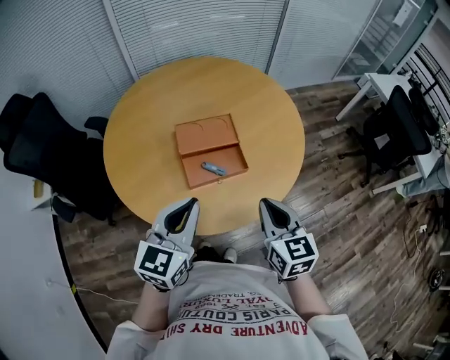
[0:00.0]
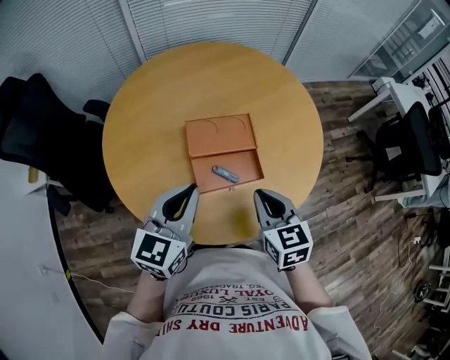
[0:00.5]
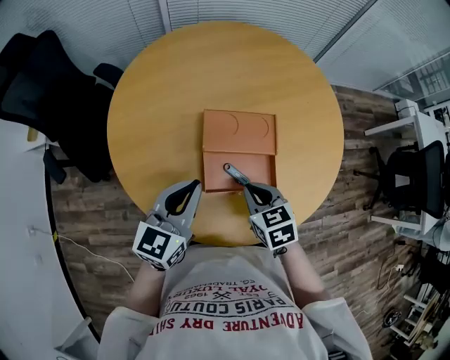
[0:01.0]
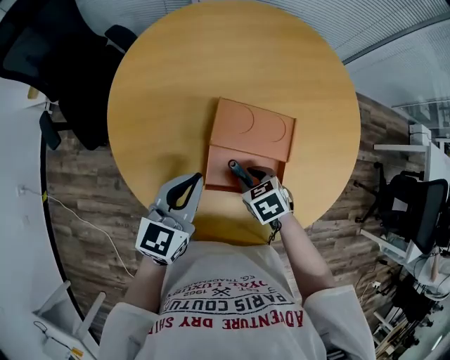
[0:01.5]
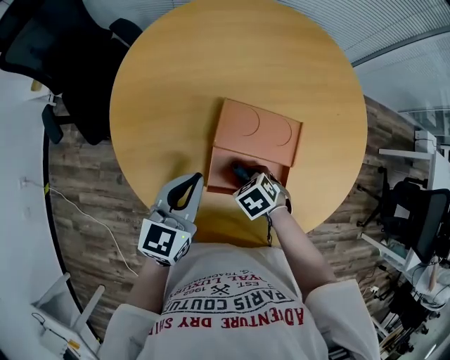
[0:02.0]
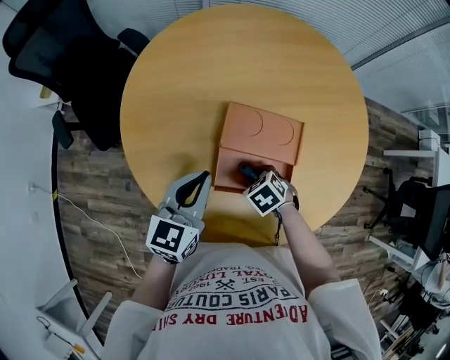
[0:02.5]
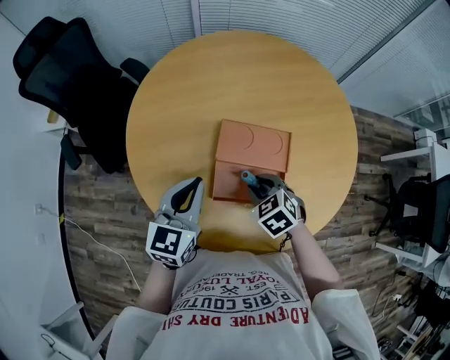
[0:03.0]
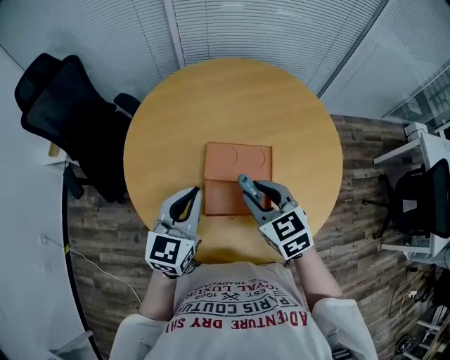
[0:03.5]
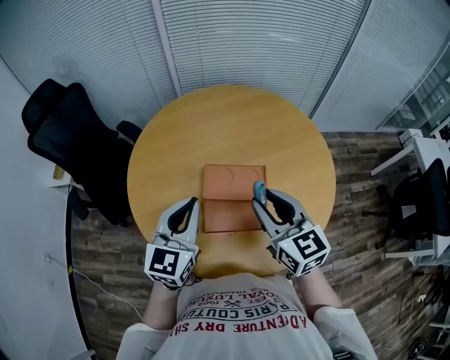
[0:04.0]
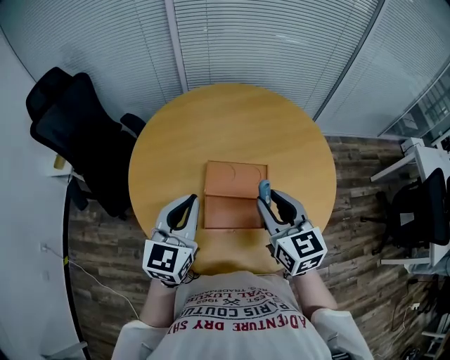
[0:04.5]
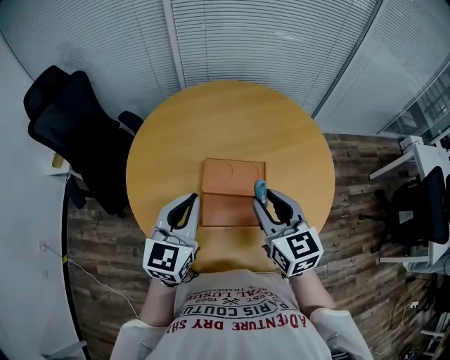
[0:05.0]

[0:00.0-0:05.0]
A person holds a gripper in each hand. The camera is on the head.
0:00.0 to 0:02.5: The right gripper travels downward by some 25 cm, tips its fingers downward by roughly 50 degrees, and opens its fingers, while the left gripper changes place by roughly 25 cm, and swivels roughly 30 degrees.
0:02.5 to 0:05.0: The left gripper is displaced upward by some 15 cm. The right gripper shifts approximately 30 cm upward, and tilts its fingers approximately 60 degrees upward.

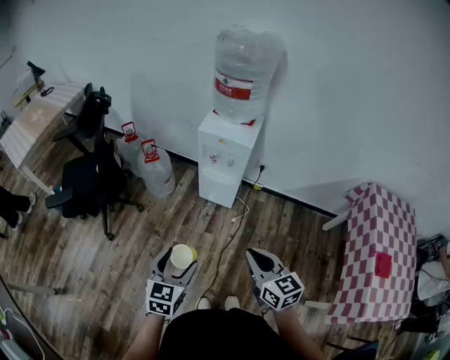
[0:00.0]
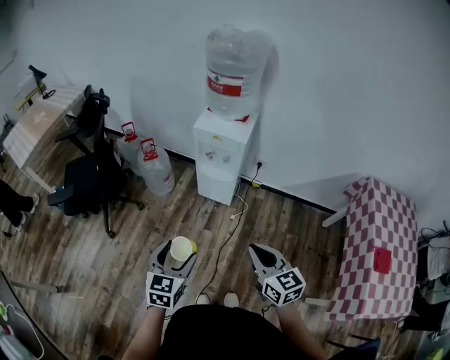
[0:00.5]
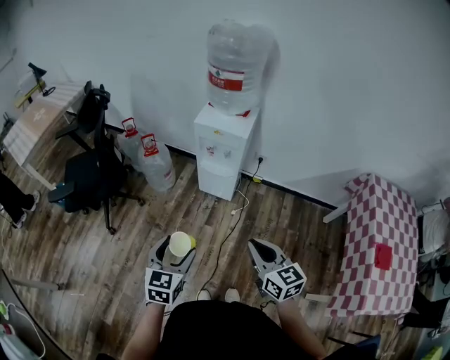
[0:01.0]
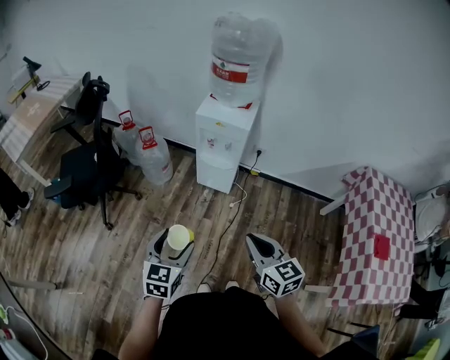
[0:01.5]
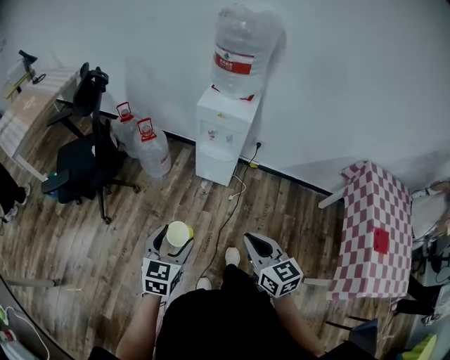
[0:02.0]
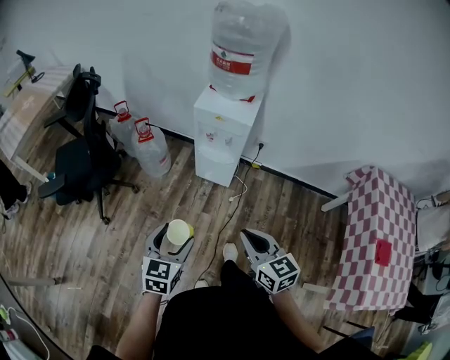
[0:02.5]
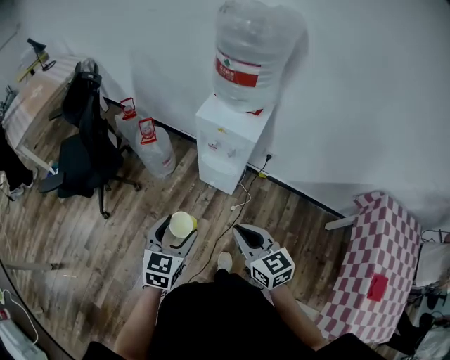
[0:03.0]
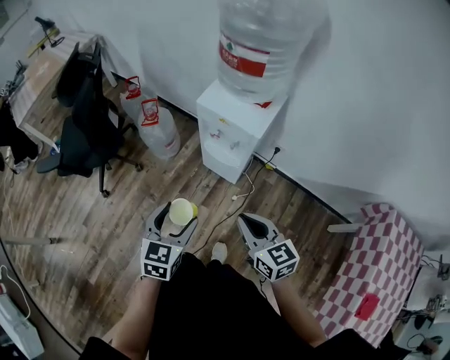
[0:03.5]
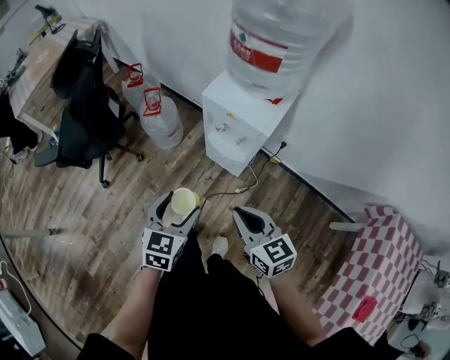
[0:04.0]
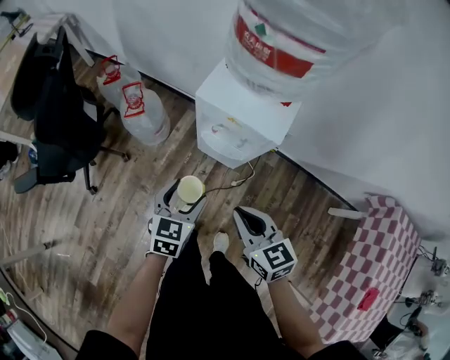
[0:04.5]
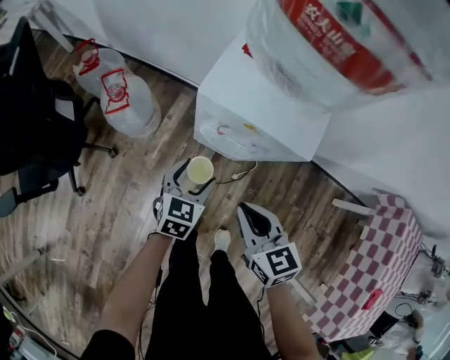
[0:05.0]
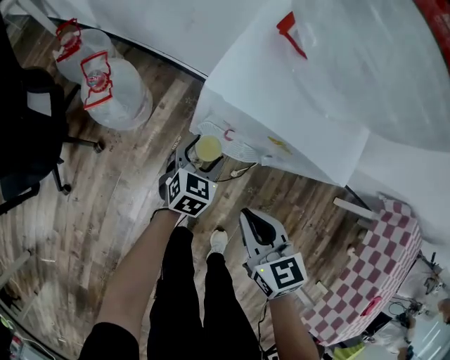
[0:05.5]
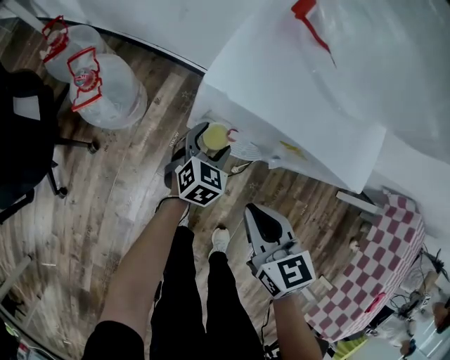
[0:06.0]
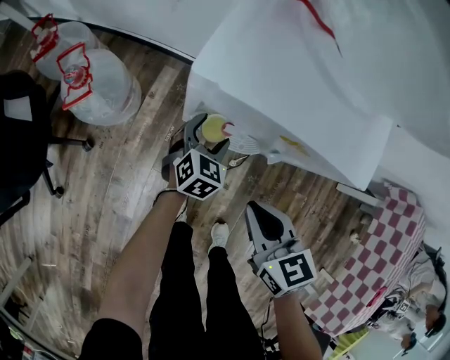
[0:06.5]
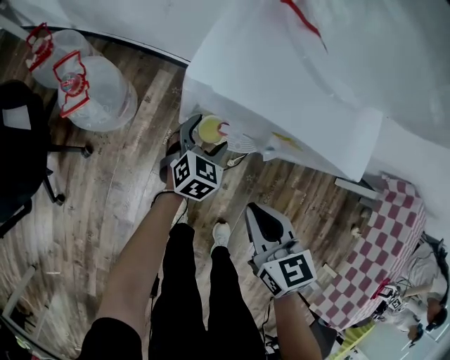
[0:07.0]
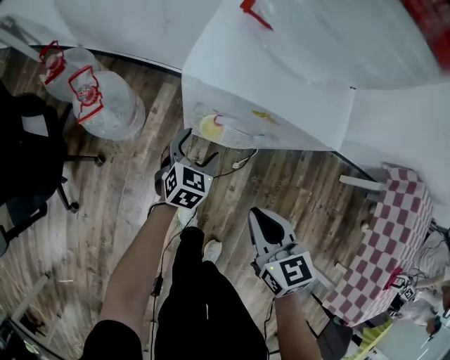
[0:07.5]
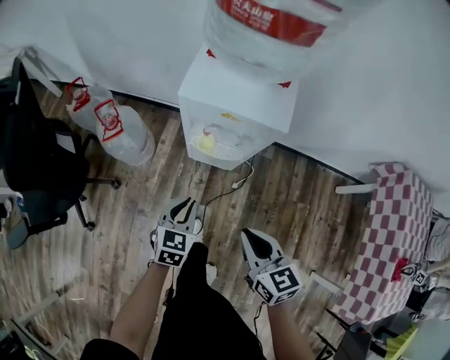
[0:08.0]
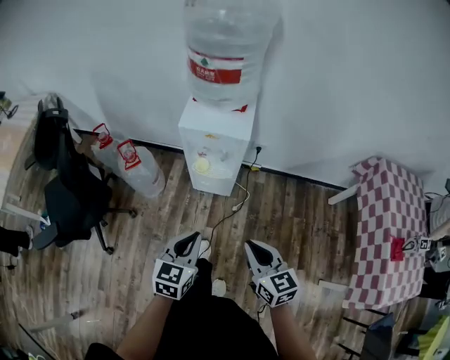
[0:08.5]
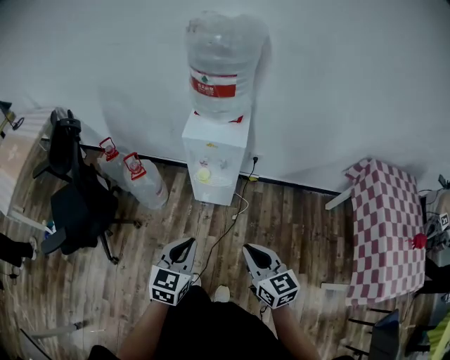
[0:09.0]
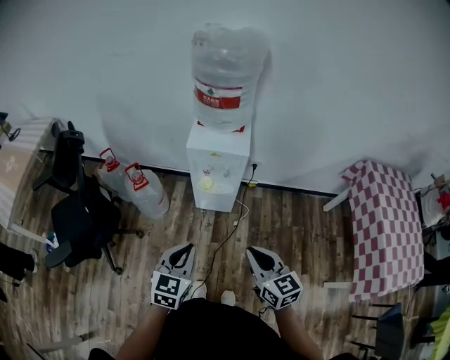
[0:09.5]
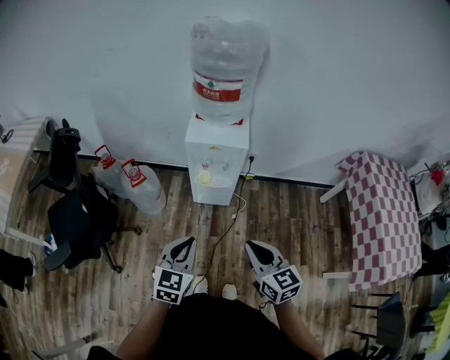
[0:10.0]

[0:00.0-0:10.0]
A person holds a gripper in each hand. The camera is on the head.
0:00.0 to 0:02.0: The right gripper moves some 5 cm.
0:02.0 to 0:04.0: The right gripper moves forward, roughly 25 cm, and swivels approximately 20 degrees; the left gripper travels forward and to the right by about 25 cm.
0:04.0 to 0:06.0: The left gripper shifts approximately 50 cm downward and forward, and rotates approximately 20 degrees; the right gripper shifts roughly 30 cm downward and forward, and turns by about 20 degrees.
0:06.0 to 0:08.0: The grippers both shift backward and upward by approximately 25 cm. The left gripper closes up.
0:08.0 to 0:10.0: The two grippers go roughly 30 cm upward and backward.

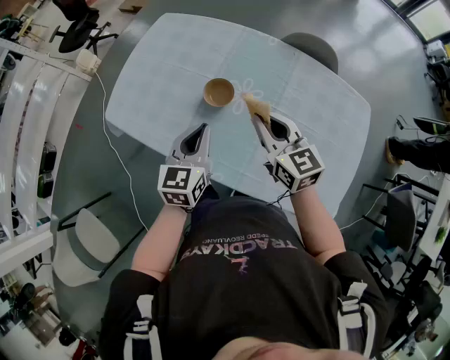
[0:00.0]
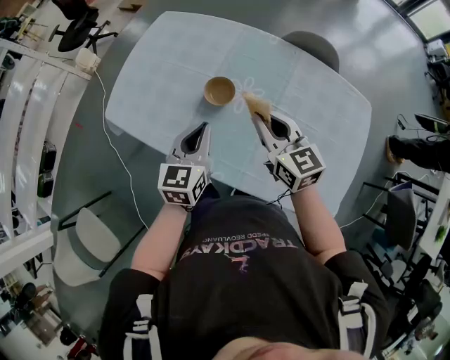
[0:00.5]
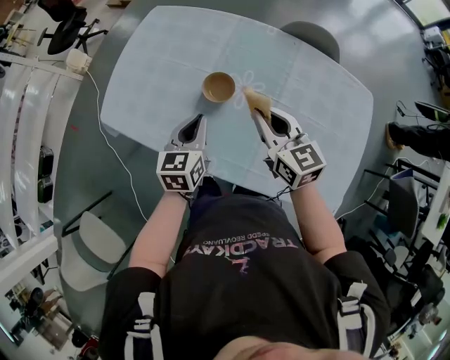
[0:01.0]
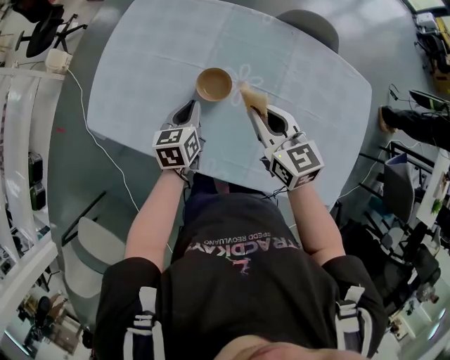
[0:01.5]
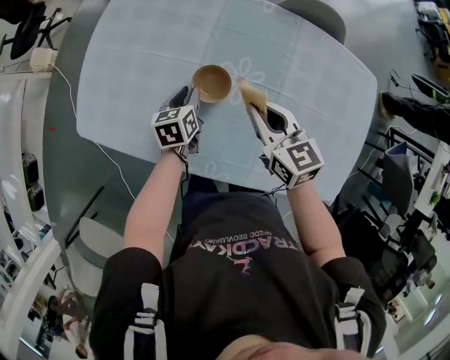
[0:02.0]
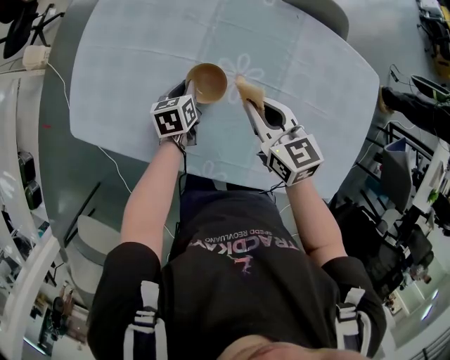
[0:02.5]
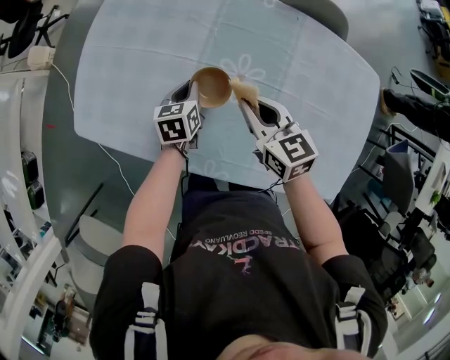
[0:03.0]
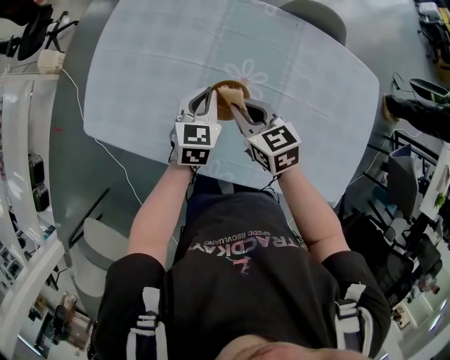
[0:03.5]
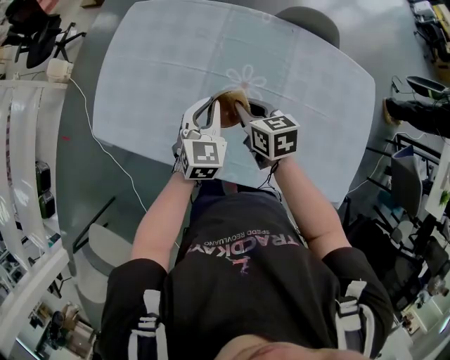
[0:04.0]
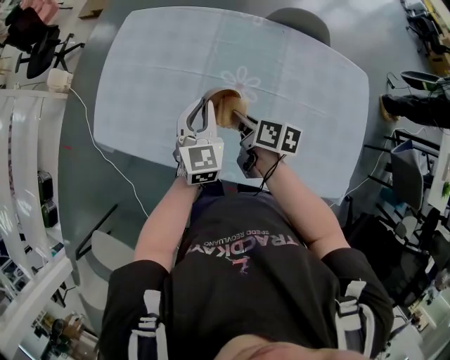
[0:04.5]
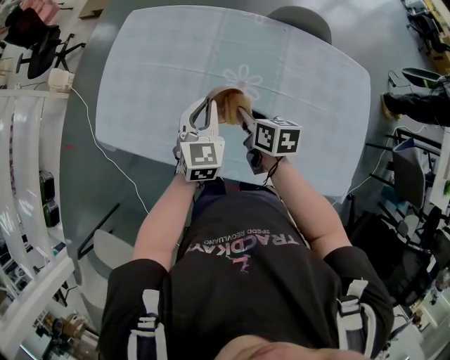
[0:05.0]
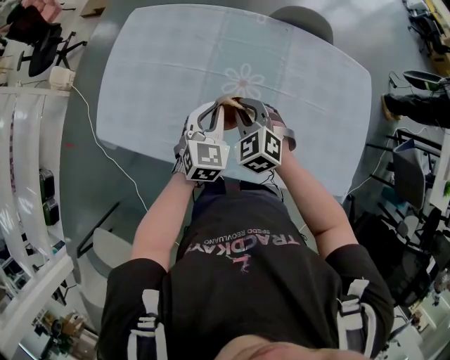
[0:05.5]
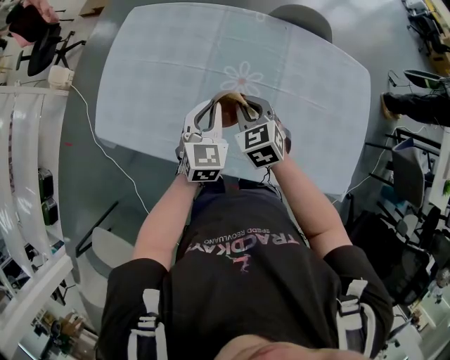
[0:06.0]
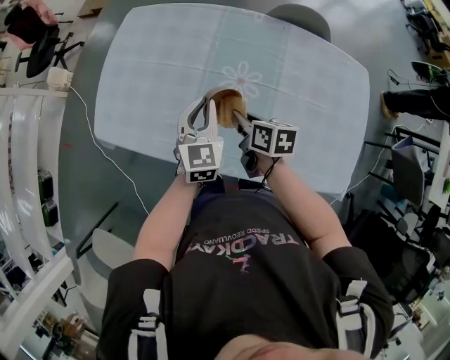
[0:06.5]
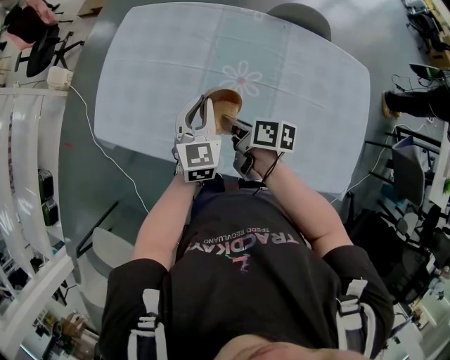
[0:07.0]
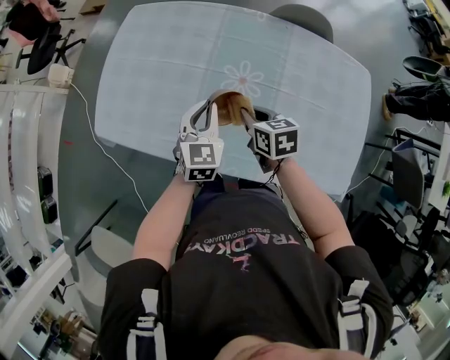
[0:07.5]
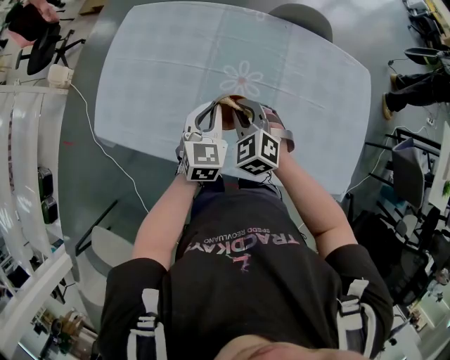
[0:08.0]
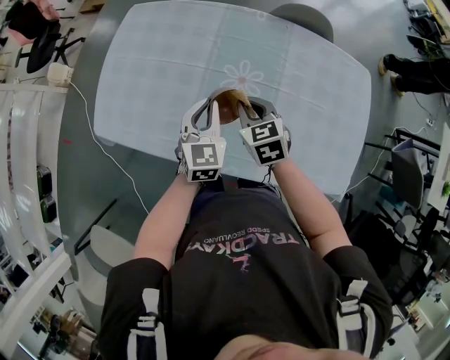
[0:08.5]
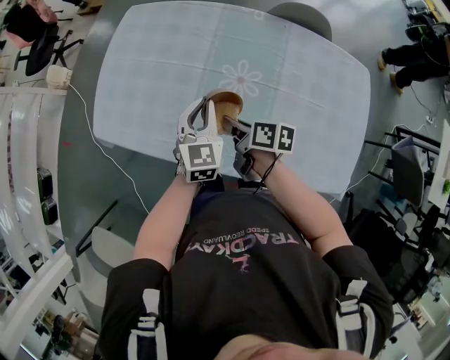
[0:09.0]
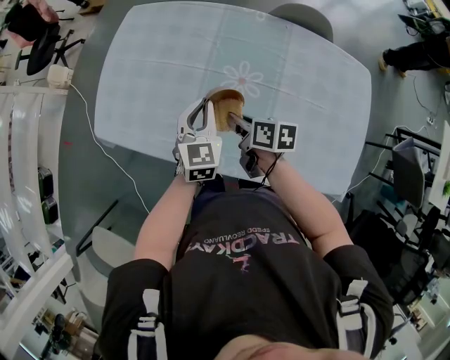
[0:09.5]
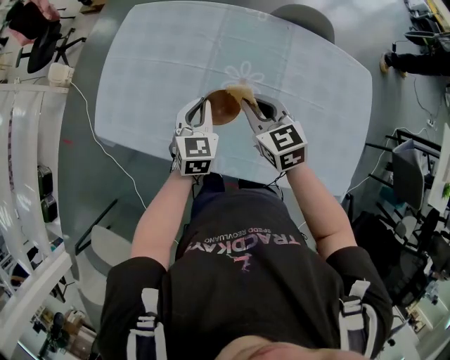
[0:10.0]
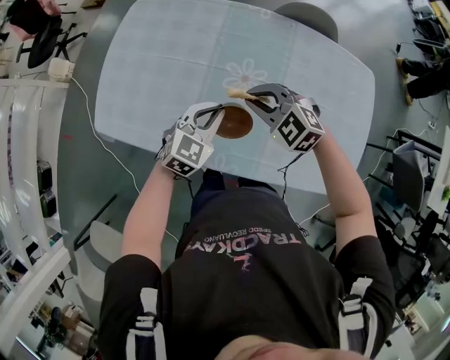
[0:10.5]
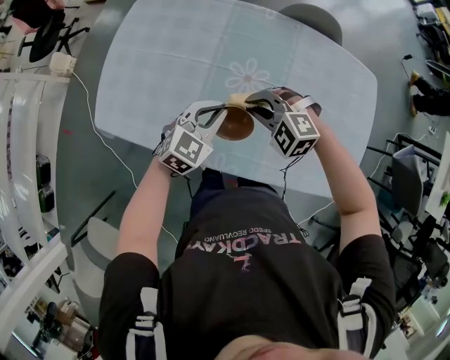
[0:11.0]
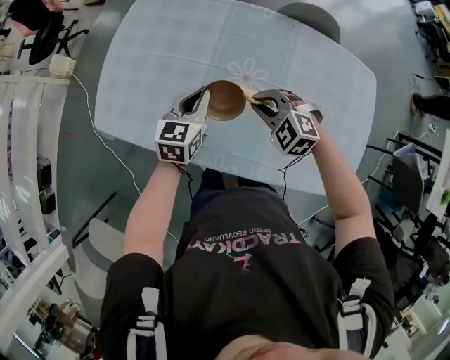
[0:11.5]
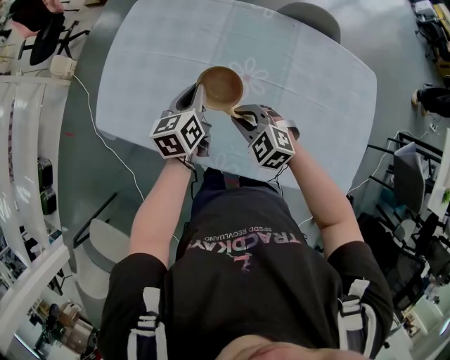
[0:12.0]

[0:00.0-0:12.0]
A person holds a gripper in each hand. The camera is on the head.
0:00.0 to 0:02.0: The right gripper heads downward and forward, covering about 10 cm. The left gripper shifts some 25 cm downward and forward, rotates some 30 degrees, and opens.
0:02.0 to 0:04.0: The left gripper shifts roughly 15 cm upward and backward, and swivels about 40 degrees. The right gripper moves some 5 cm.
0:04.0 to 0:06.0: The right gripper swivels roughly 30 degrees.
0:08.0 to 0:10.0: The right gripper swivels roughly 40 degrees.
0:10.0 to 0:12.0: The left gripper turns by some 40 degrees; the right gripper moves downward and to the left, roughly 10 cm, and rotates roughly 40 degrees.
